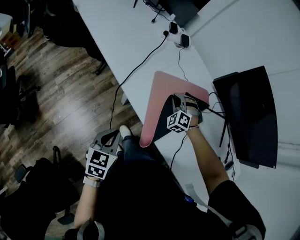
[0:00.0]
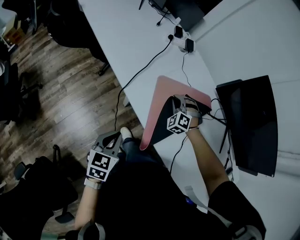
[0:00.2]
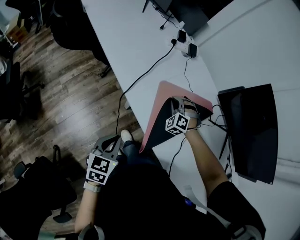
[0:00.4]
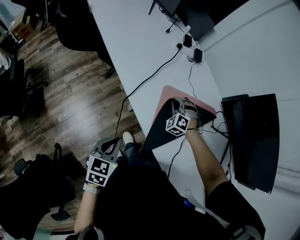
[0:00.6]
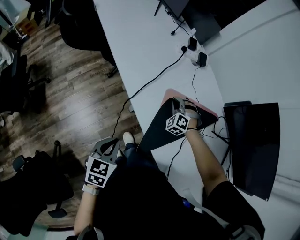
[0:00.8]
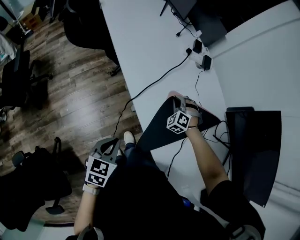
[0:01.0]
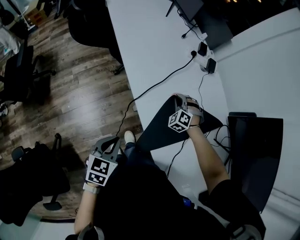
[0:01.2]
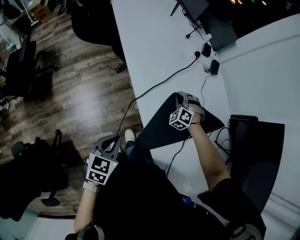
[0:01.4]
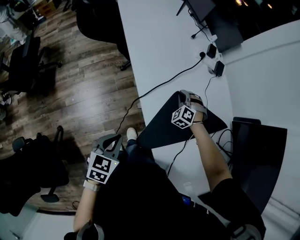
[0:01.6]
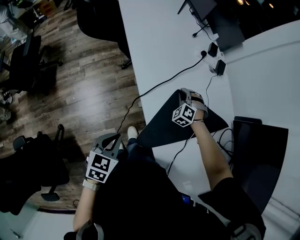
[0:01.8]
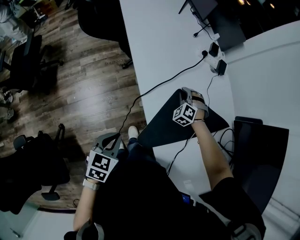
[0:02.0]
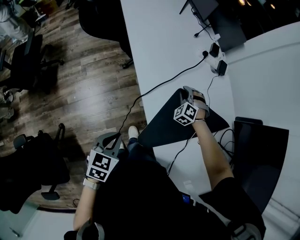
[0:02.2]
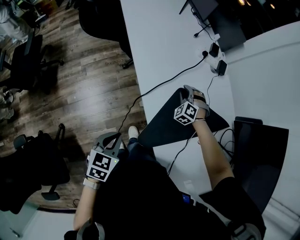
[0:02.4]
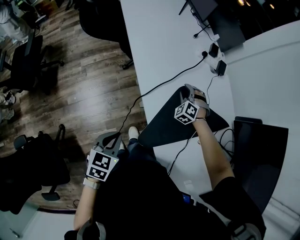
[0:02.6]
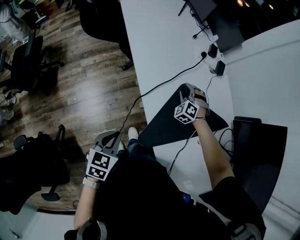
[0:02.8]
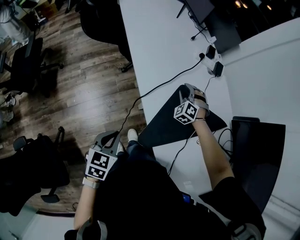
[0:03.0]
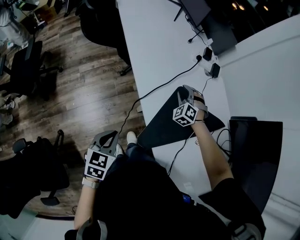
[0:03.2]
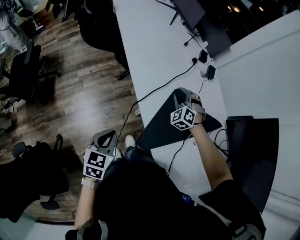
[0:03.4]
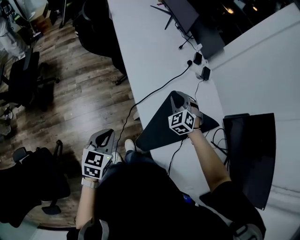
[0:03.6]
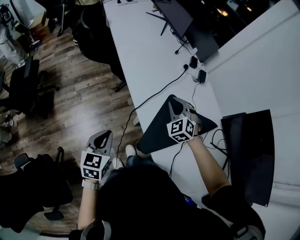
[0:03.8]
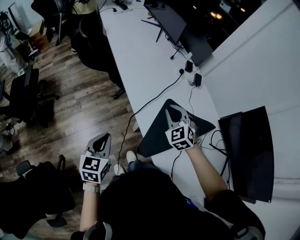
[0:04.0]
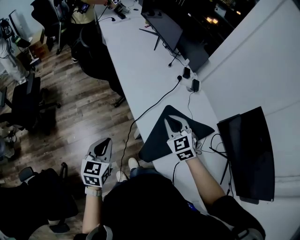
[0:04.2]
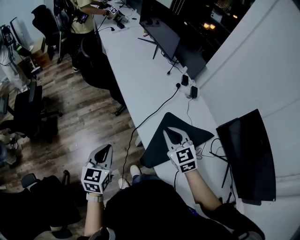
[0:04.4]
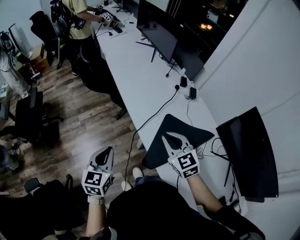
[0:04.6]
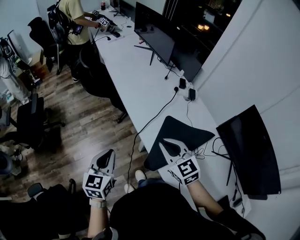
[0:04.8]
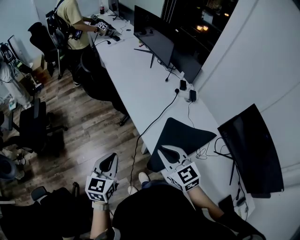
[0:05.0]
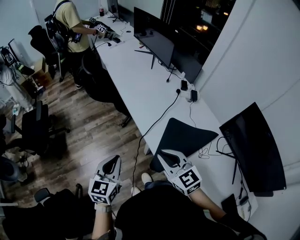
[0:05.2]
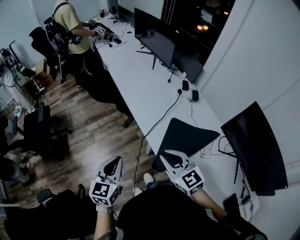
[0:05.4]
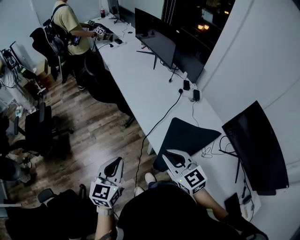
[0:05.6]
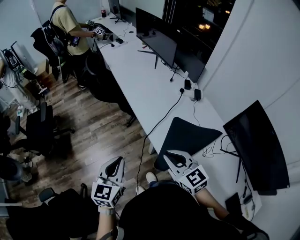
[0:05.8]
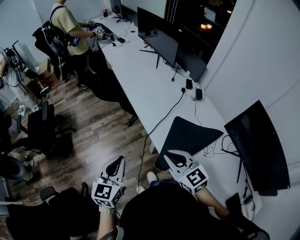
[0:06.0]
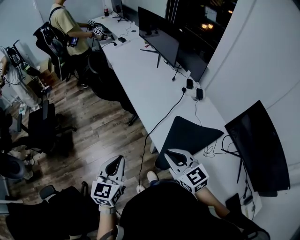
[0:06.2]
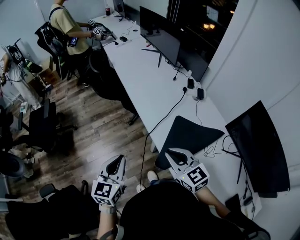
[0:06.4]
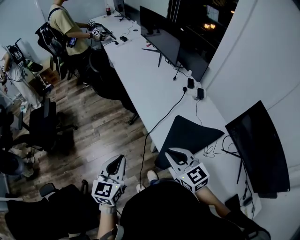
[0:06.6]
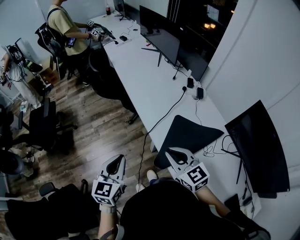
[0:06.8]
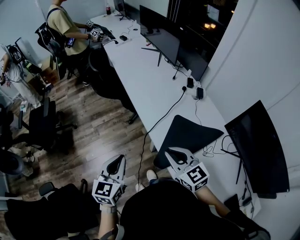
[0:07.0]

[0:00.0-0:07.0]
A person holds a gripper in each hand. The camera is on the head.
0:00.0 to 0:01.4: The right gripper is displaced forward, to the left and downward by about 15 cm; the left gripper shifts by about 5 cm.
0:01.4 to 0:02.8: The right gripper opens.
0:02.8 to 0:04.2: The left gripper goes roughly 10 cm upward and to the left; the right gripper is displaced upward and backward by about 25 cm, rotates some 40 degrees, and closes up.
0:04.2 to 0:05.6: The right gripper moves backward, to the left and upward, about 15 cm, and turns by approximately 30 degrees; the left gripper is displaced upward by about 10 cm.
0:05.6 to 0:07.0: The grippers move only a little.

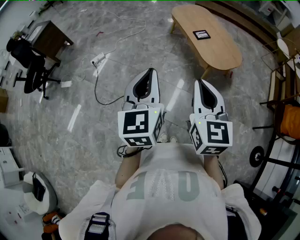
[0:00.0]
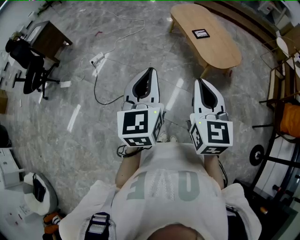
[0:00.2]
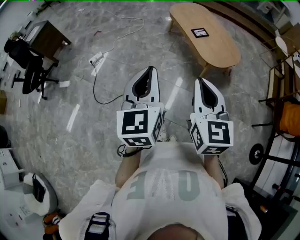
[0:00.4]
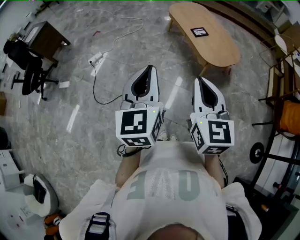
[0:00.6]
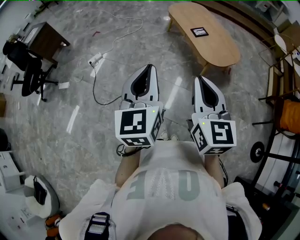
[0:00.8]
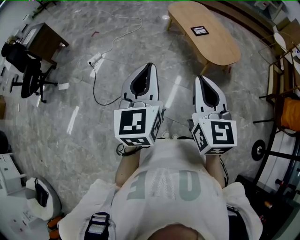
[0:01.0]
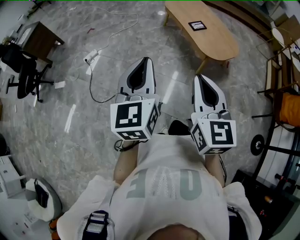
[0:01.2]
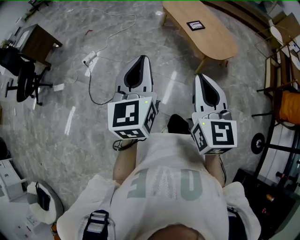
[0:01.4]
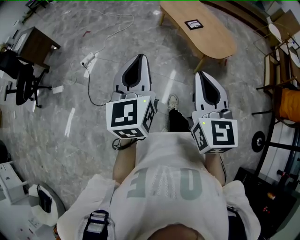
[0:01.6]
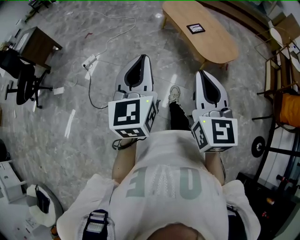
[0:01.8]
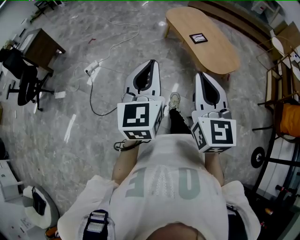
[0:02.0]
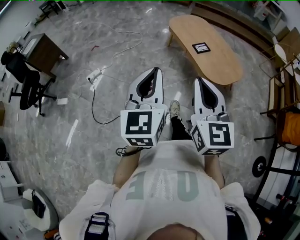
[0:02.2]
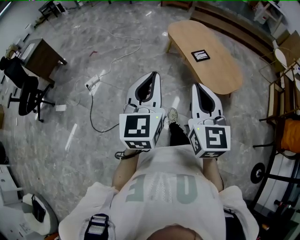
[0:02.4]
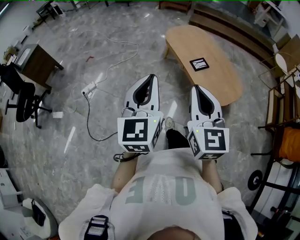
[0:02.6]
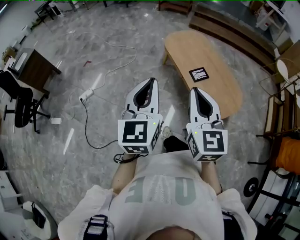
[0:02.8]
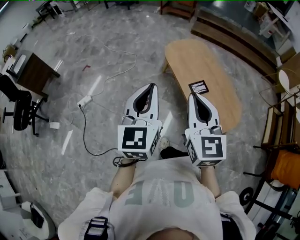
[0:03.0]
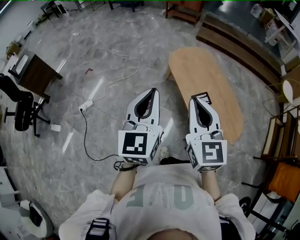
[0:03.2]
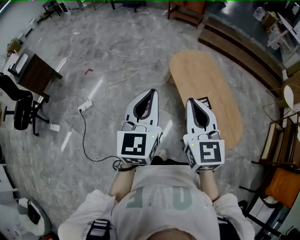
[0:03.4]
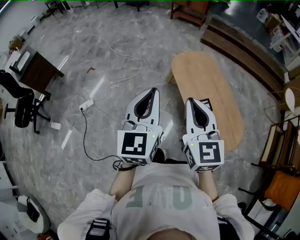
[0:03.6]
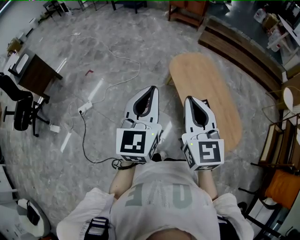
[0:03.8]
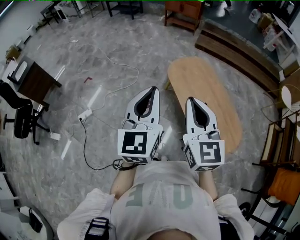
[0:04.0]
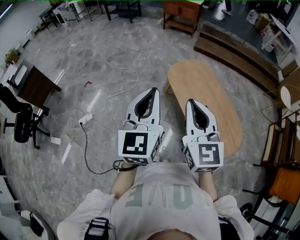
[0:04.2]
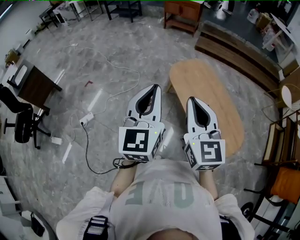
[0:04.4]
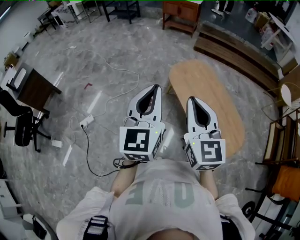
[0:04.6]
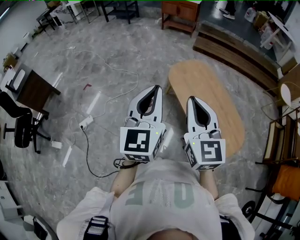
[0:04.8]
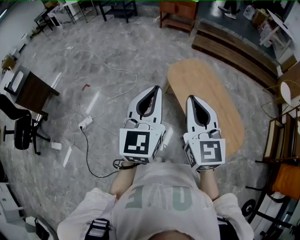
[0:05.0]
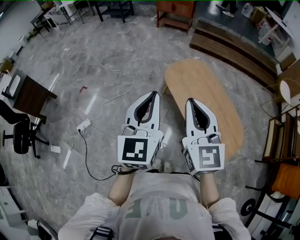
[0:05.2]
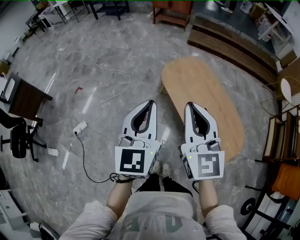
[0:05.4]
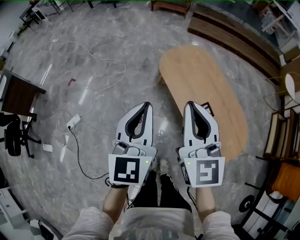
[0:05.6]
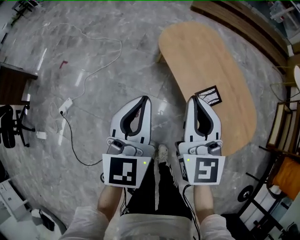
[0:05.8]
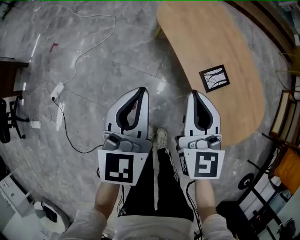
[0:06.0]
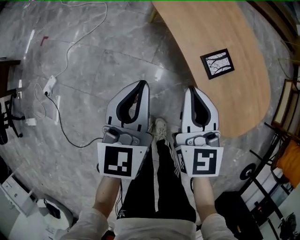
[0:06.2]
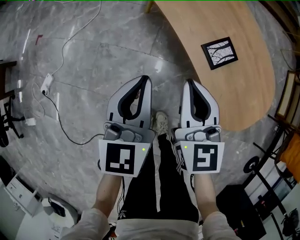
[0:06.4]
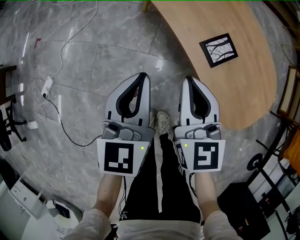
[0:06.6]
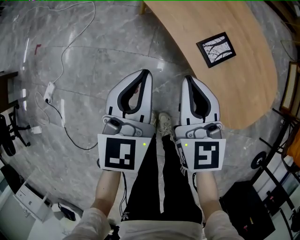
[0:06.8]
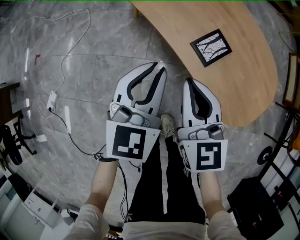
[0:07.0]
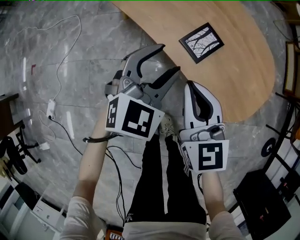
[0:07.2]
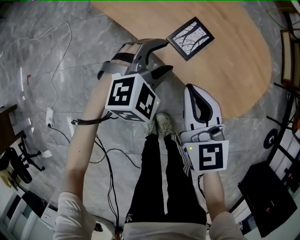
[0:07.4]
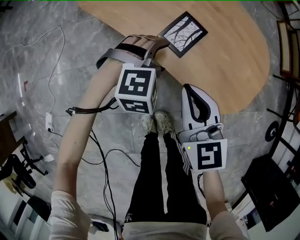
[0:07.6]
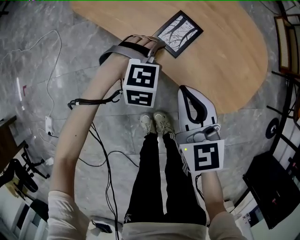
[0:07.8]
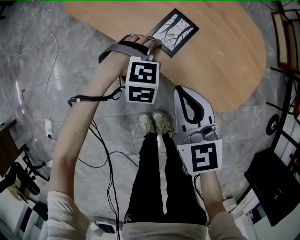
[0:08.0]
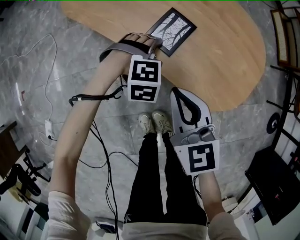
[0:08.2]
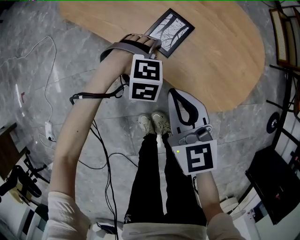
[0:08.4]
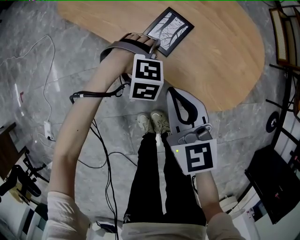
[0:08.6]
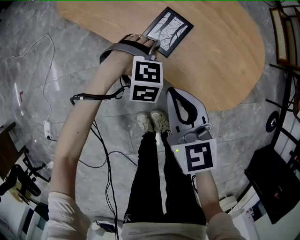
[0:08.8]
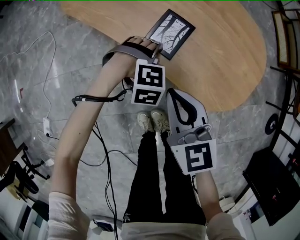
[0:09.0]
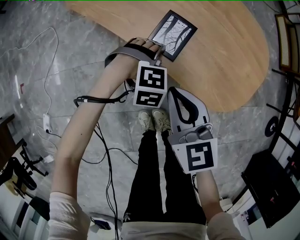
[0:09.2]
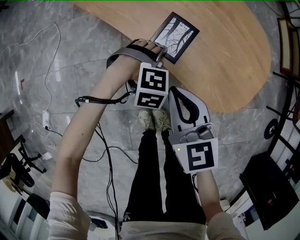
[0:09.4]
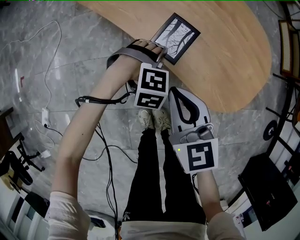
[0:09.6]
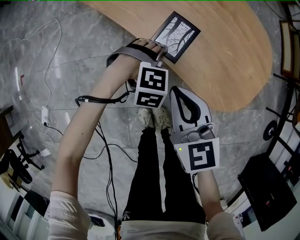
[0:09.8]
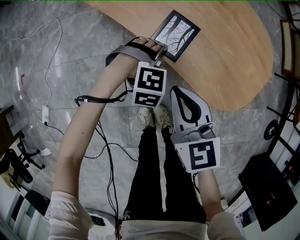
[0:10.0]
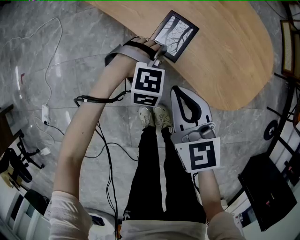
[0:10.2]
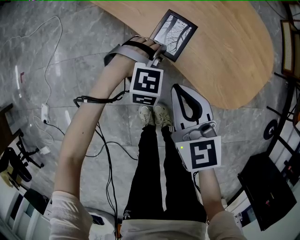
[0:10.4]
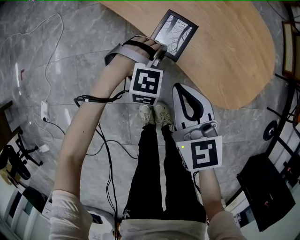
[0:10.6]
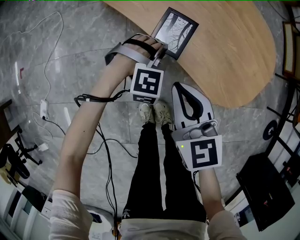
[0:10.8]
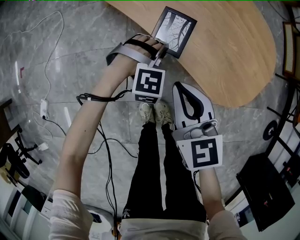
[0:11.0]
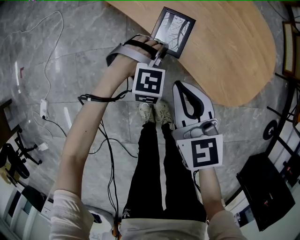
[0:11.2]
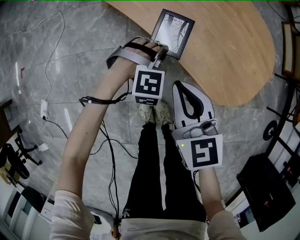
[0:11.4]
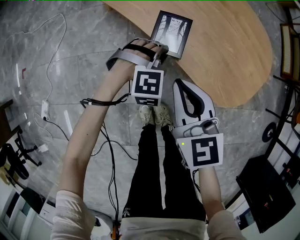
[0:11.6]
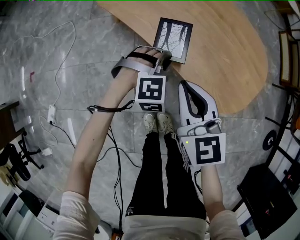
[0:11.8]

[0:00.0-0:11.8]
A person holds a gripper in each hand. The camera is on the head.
0:00.0 to 0:01.4: The left gripper ends up approximately 5 cm from where it was.
0:01.4 to 0:03.0: Both grippers are carried forward, approximately 50 cm.
0:03.0 to 0:04.4: The grippers both shift forward by about 15 cm.
0:04.4 to 0:06.0: Both grippers travel together downward, approximately 35 cm.
0:06.0 to 0:07.4: The left gripper shifts by approximately 30 cm, rotates approximately 80 degrees, and opens. The right gripper travels downward by roughly 15 cm.
0:07.4 to 0:08.8: The left gripper is displaced downward by roughly 15 cm, and tips its fingers downward by approximately 30 degrees.
0:08.8 to 0:10.4: The left gripper closes its fingers.
0:10.4 to 0:11.8: The grippers both shift upward by roughly 5 cm.

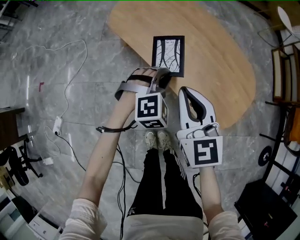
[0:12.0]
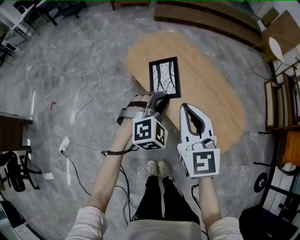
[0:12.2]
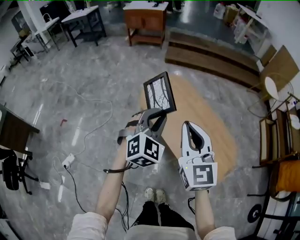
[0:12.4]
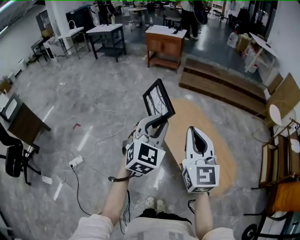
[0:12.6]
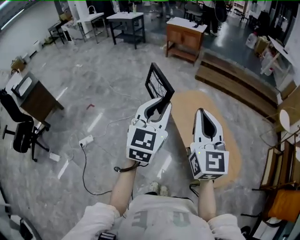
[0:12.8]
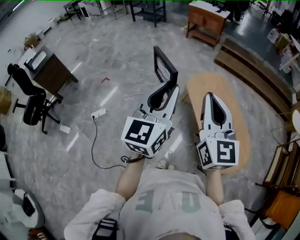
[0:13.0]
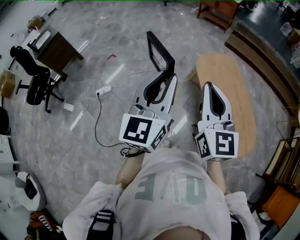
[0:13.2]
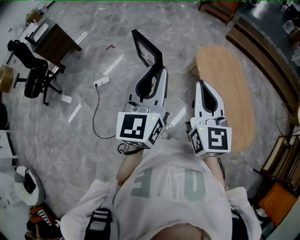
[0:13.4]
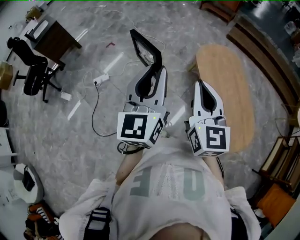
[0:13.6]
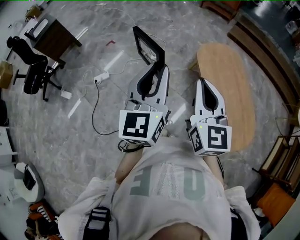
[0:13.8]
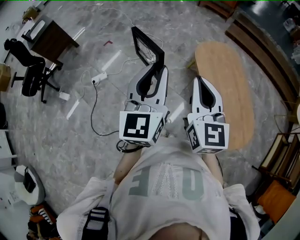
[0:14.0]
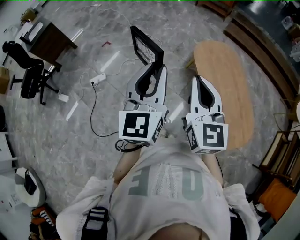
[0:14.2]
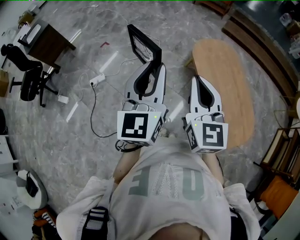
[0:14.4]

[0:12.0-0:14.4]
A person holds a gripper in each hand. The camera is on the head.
0:12.0 to 0:13.2: The two grippers go about 40 cm upward. The left gripper tilts its fingers approximately 50 degrees upward. The right gripper swivels some 30 degrees.
0:13.2 to 0:14.4: The right gripper changes place by roughly 5 cm.

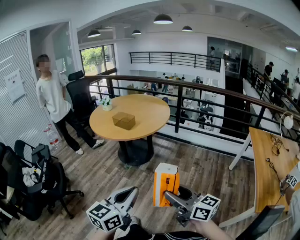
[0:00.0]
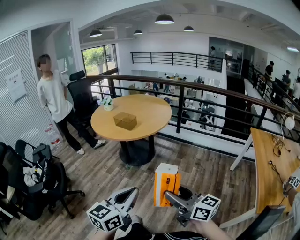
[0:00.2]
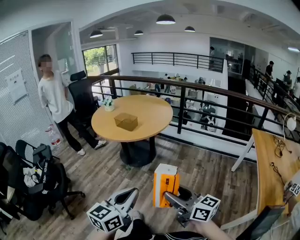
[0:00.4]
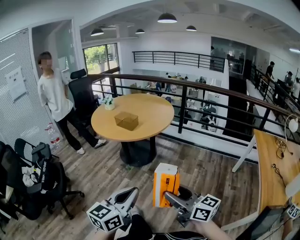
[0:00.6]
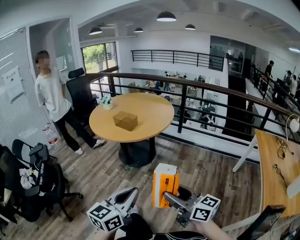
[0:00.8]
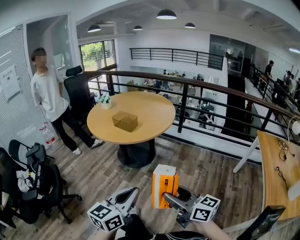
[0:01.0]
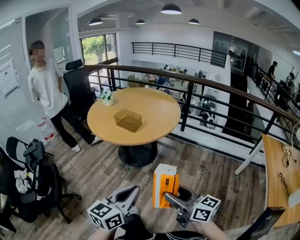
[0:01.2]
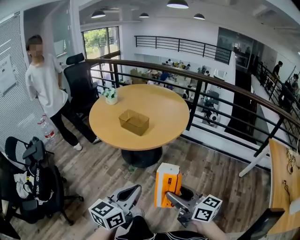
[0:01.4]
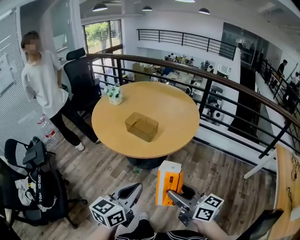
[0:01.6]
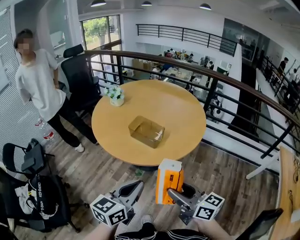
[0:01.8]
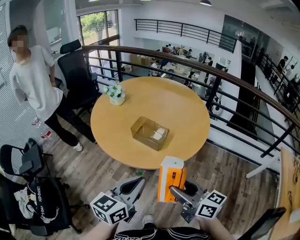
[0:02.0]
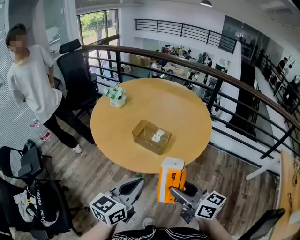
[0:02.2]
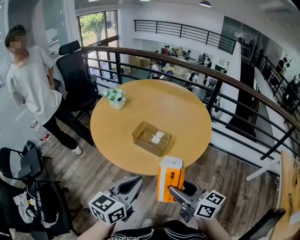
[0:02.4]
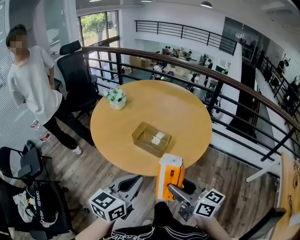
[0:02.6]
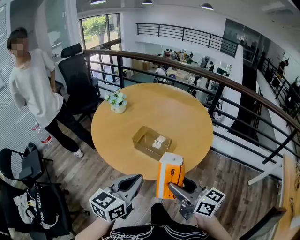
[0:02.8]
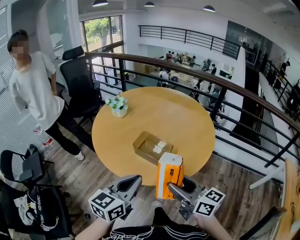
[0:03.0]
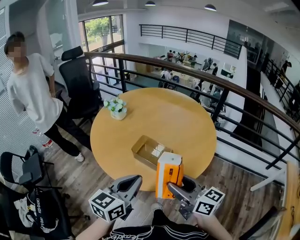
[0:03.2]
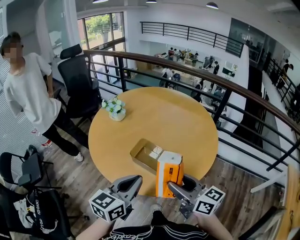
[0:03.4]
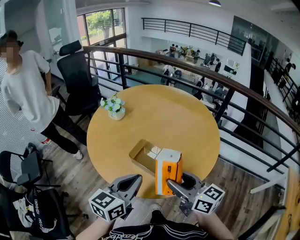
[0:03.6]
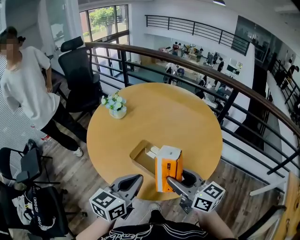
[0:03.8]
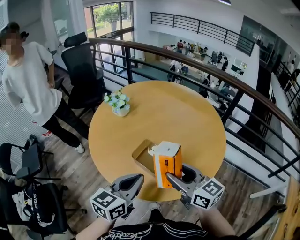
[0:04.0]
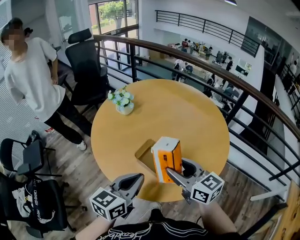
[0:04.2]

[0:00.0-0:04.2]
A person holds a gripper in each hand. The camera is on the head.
0:00.0 to 0:01.4: The two grippers go approximately 15 cm forward.
0:01.4 to 0:02.8: Both grippers travel together forward, approximately 20 cm.
0:02.8 to 0:04.2: The left gripper shifts about 10 cm forward. Meanwhile the right gripper is displaced forward by approximately 15 cm.
